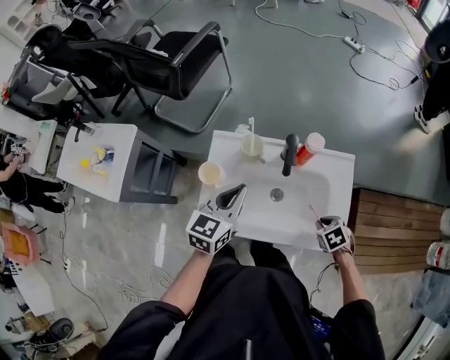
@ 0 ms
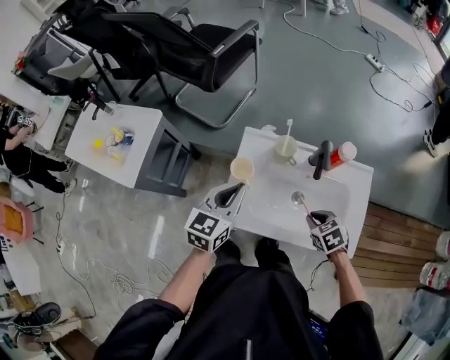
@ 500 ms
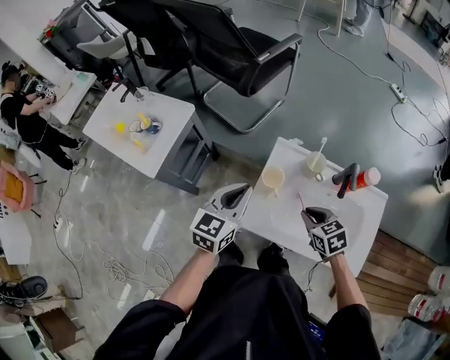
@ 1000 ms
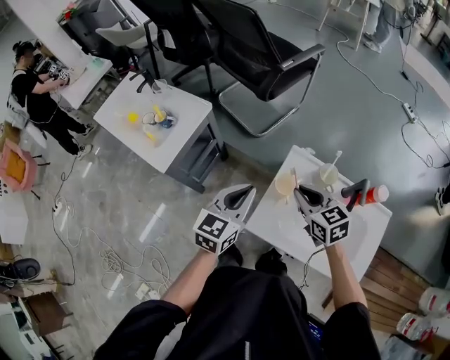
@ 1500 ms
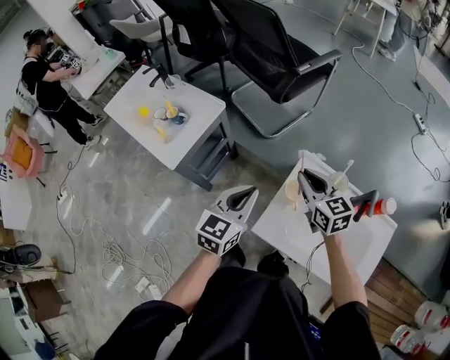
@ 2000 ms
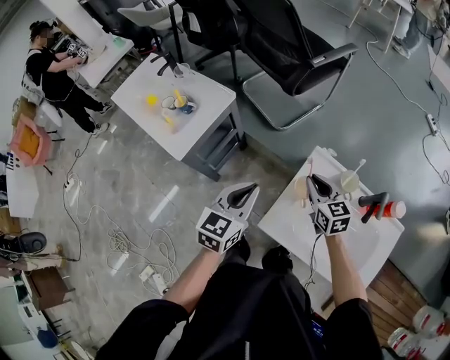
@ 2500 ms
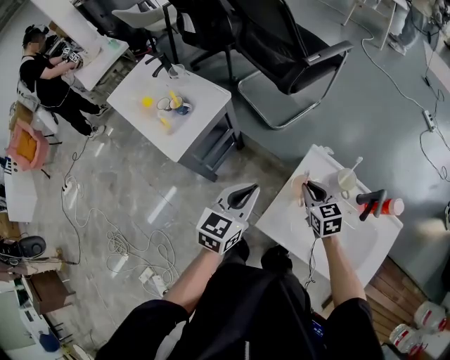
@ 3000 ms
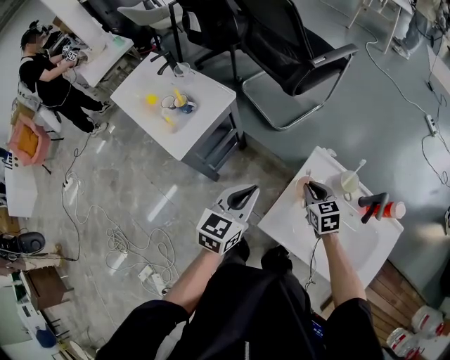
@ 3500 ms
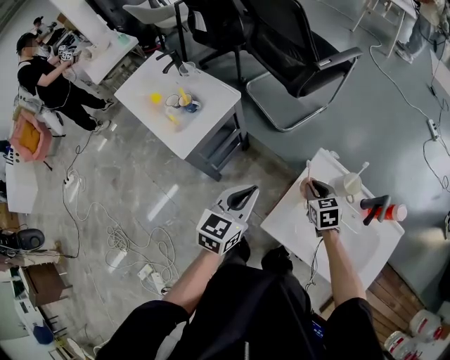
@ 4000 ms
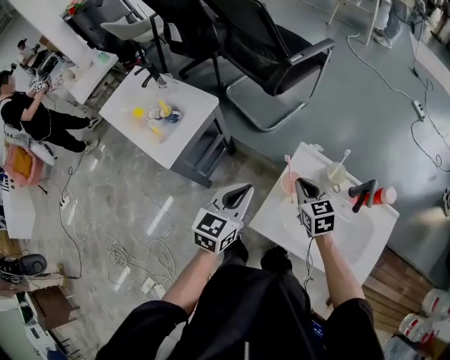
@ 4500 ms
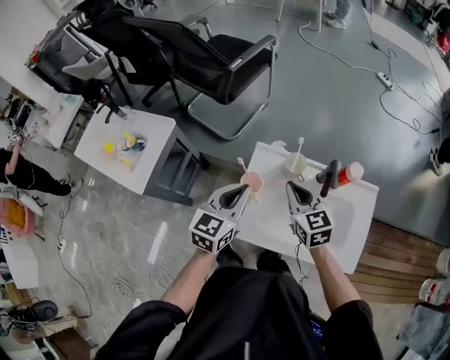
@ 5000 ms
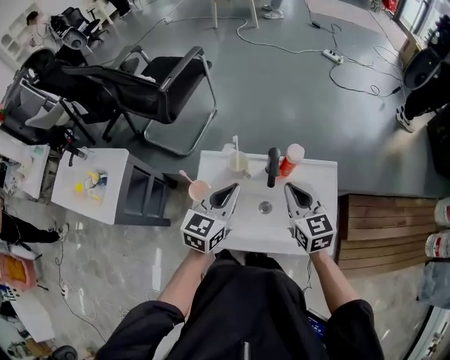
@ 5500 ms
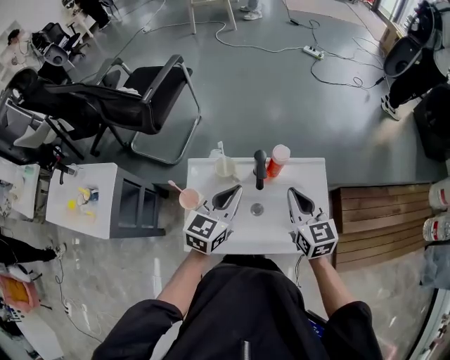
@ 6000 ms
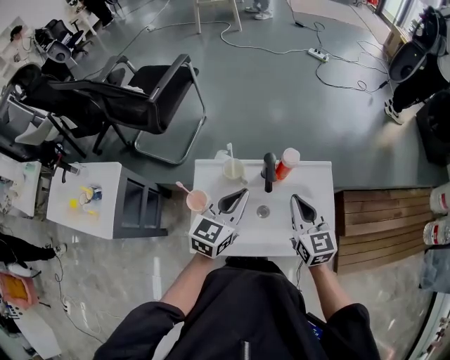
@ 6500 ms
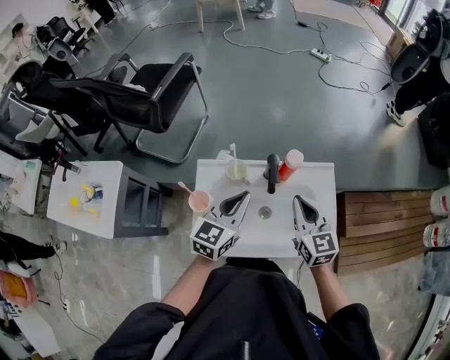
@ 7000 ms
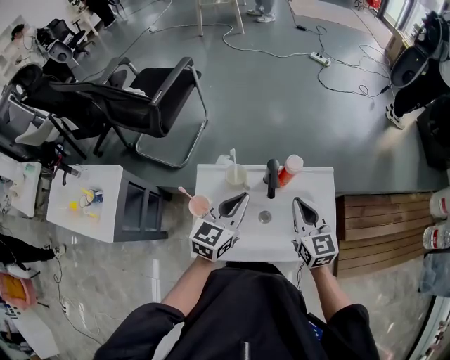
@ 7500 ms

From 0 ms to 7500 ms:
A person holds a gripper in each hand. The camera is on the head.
From 0 ms to 2000 ms: The left gripper heads to the left, covering about 25 cm, and turns by roughly 20 degrees. The right gripper shifts some 50 cm to the left, forward and upward, and angles its fingers upward, by approximately 50 degrees.
From 2000 ms to 4000 ms: The right gripper shifts approximately 15 cm downward, and rotates about 30 degrees.
From 4000 ms to 5500 ms: The left gripper changes place by roughly 35 cm, and swivels approximately 30 degrees. The right gripper shifts by approximately 35 cm, and rotates about 40 degrees.
From 5500 ms to 7500 ms: There are only small adjustments of the grippers.

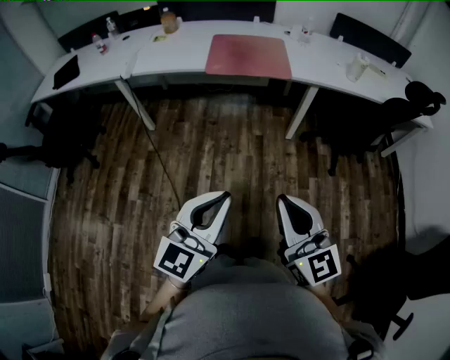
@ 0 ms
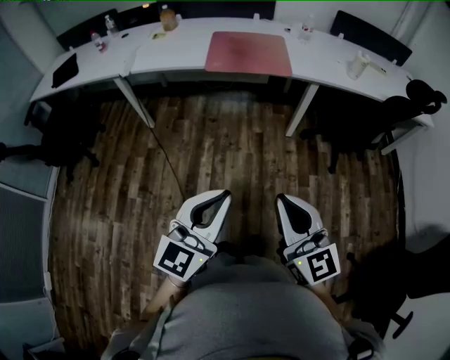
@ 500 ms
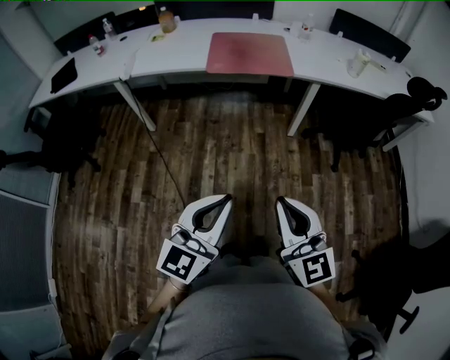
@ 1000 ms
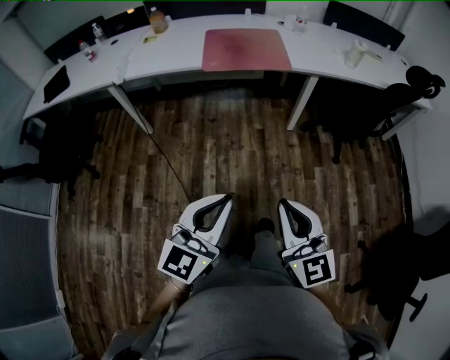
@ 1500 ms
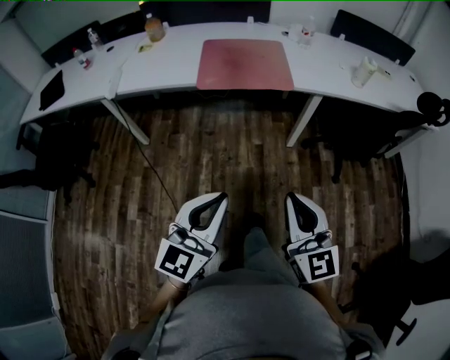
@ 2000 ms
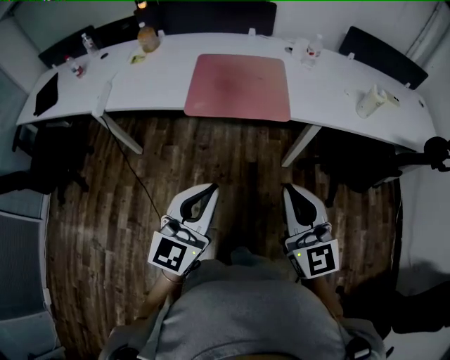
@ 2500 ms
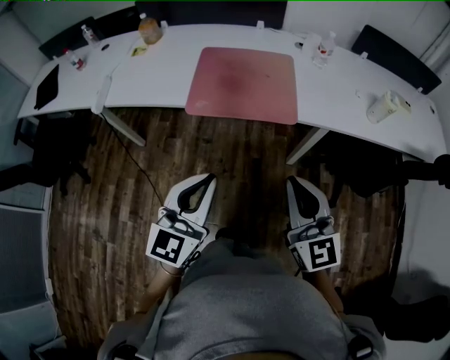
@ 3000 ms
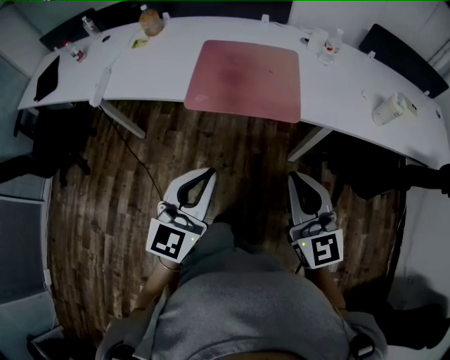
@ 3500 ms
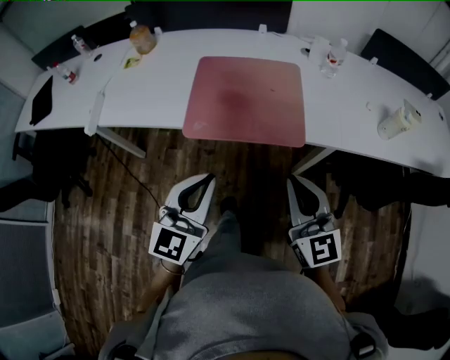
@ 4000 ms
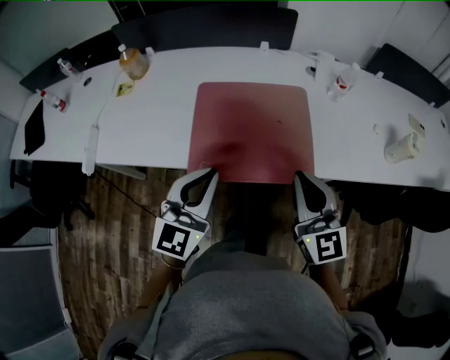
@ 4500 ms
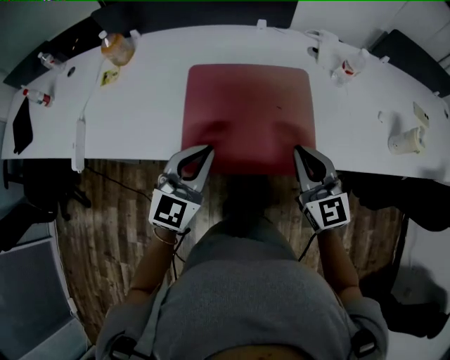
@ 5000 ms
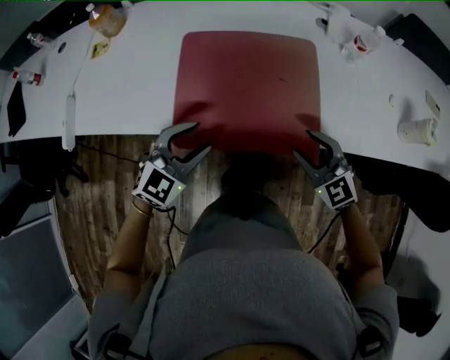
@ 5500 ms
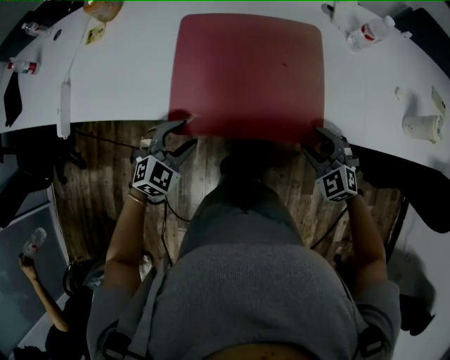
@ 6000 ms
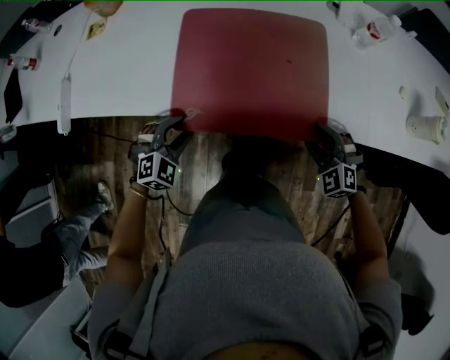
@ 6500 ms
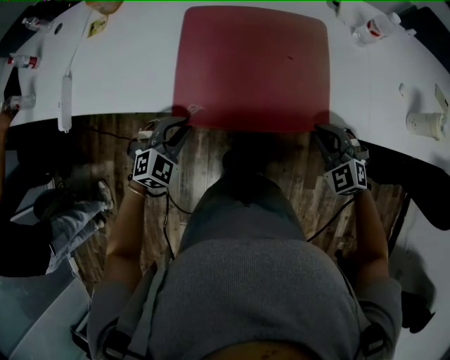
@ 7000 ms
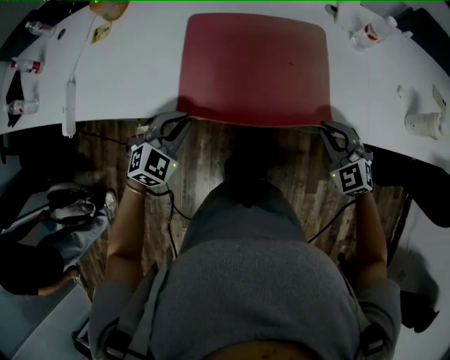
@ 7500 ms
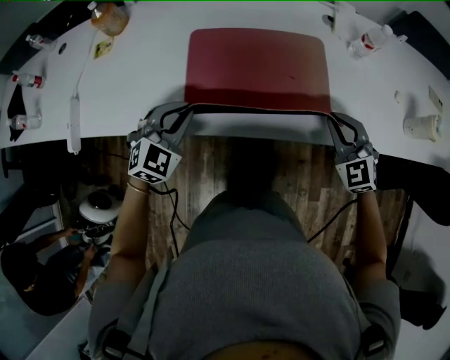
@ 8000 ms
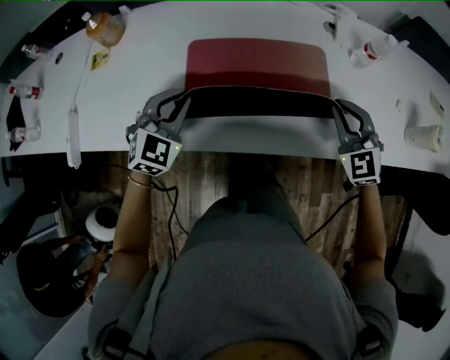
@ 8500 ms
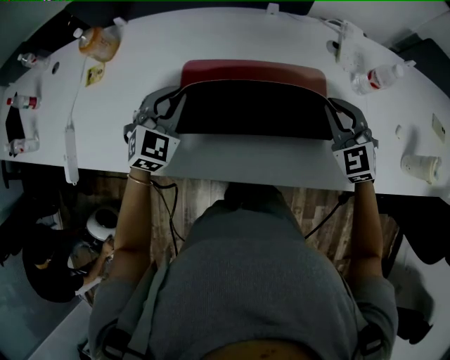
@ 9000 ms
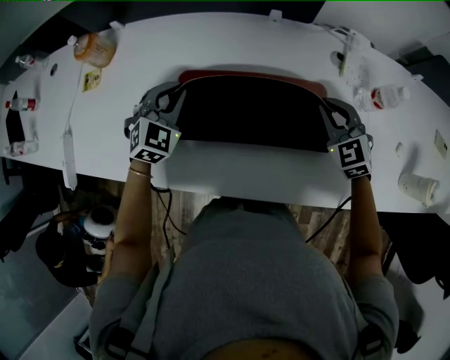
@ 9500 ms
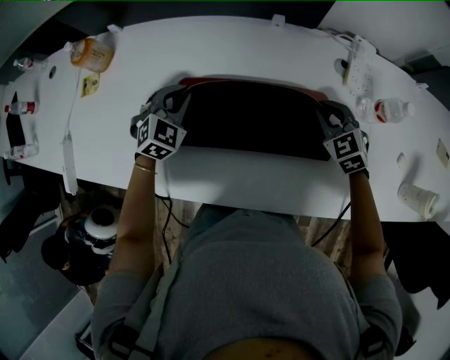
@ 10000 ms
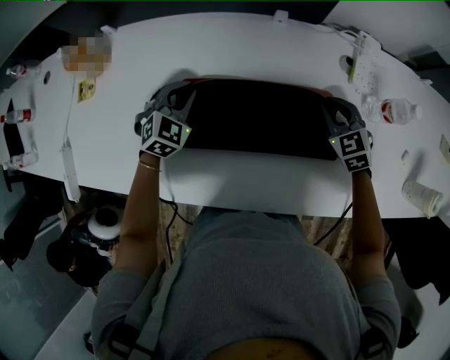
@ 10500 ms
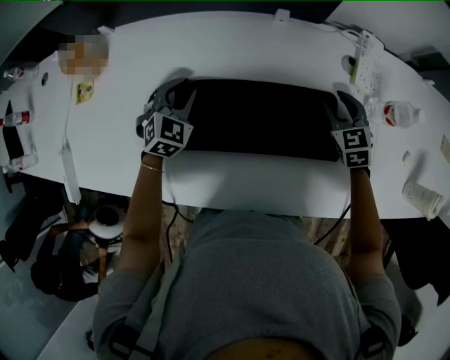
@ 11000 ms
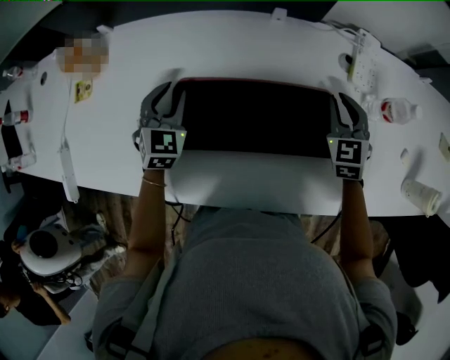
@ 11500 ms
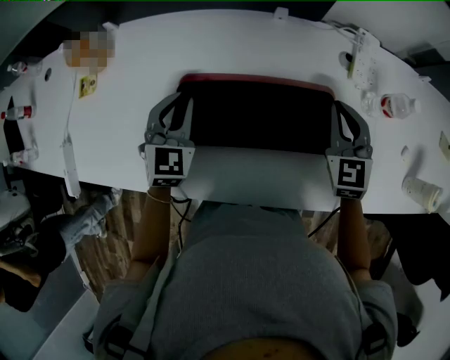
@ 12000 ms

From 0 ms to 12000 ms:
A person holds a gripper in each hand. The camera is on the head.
From 0 ms to 2000 ms: The grippers both shift forward by about 15 cm.
From 2000 ms to 4000 ms: Both grippers travel together forward, roughly 35 cm.
From 4000 ms to 6000 ms: The two grippers go roughly 30 cm downward and forward. The left gripper angles its fingers downward, by some 40 degrees, and opens its fingers. Meanwhile the right gripper tilts its fingers approximately 40 degrees downward, and opens its fingers.
From 6000 ms to 8000 ms: The right gripper heads upward and forward, covering some 15 cm, and closes. The left gripper goes approximately 15 cm forward and upward, and closes its fingers.
From 8000 ms to 10000 ms: Both grippers travel together forward, some 25 cm.
From 10000 ms to 12000 ms: The grippers both shift upward by some 10 cm. The right gripper swivels approximately 30 degrees, and opens, then closes again. Meanwhile the left gripper rotates about 20 degrees.

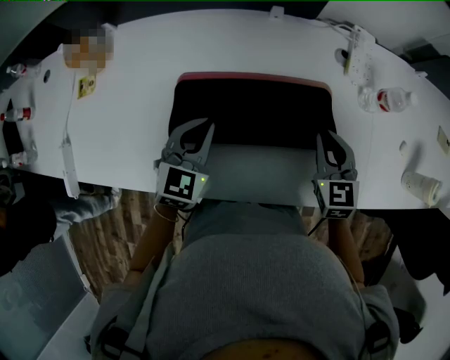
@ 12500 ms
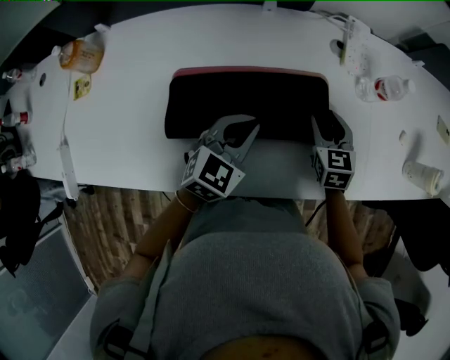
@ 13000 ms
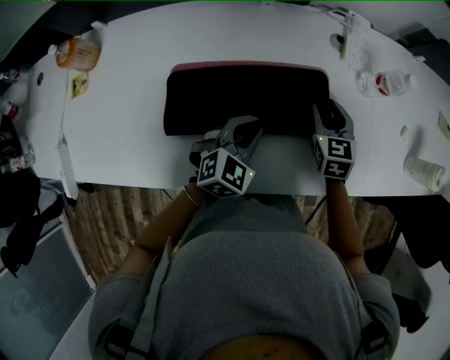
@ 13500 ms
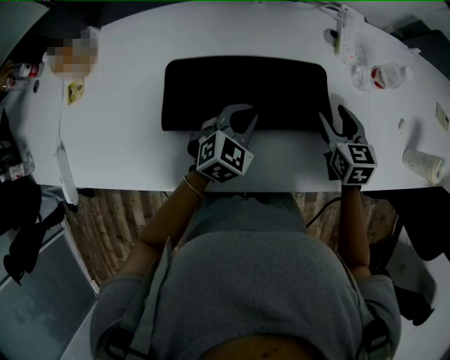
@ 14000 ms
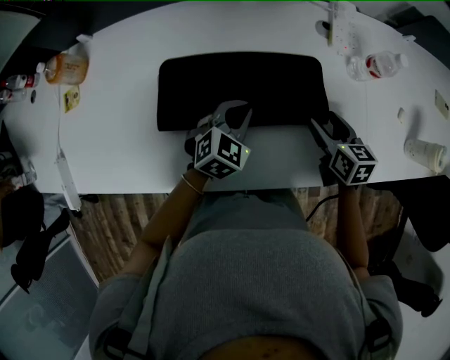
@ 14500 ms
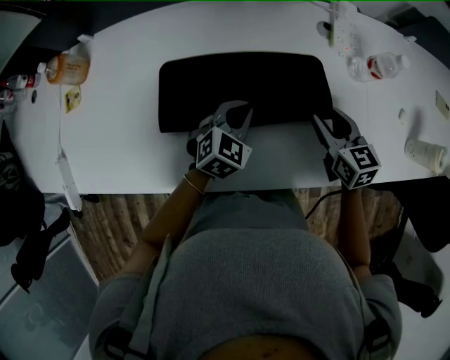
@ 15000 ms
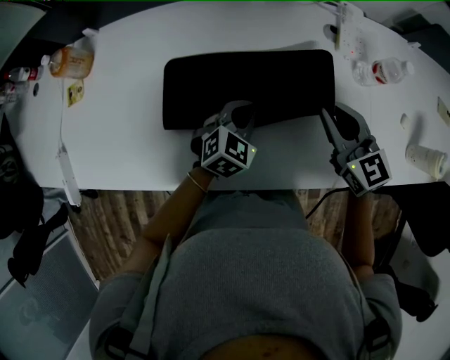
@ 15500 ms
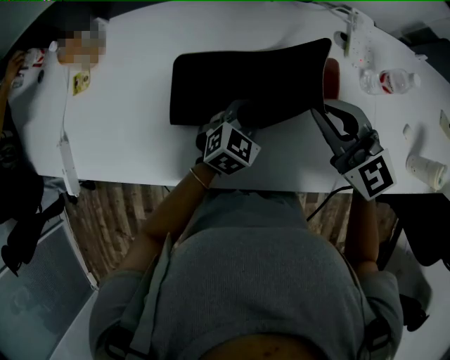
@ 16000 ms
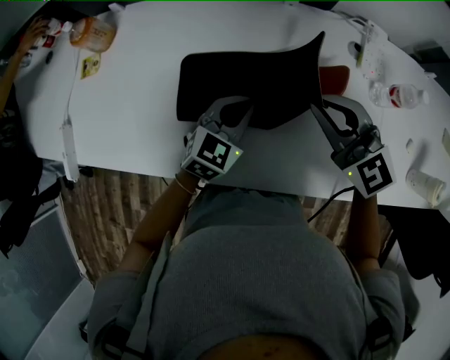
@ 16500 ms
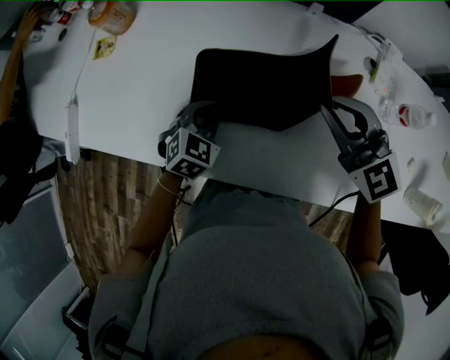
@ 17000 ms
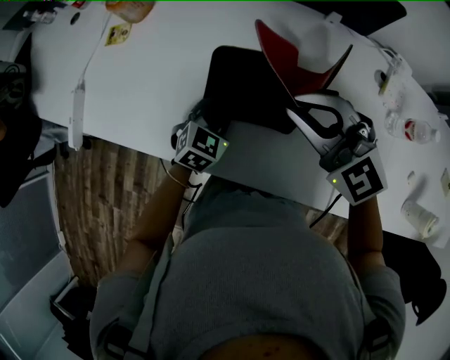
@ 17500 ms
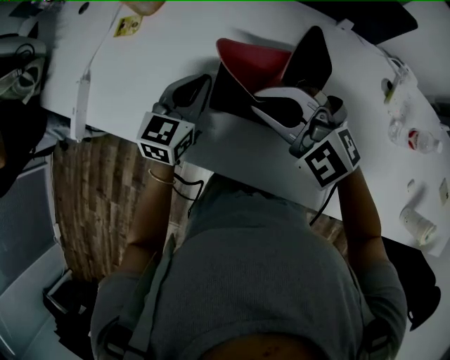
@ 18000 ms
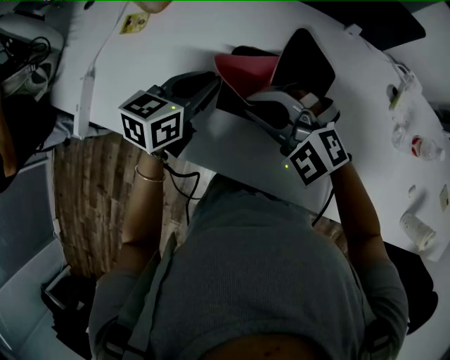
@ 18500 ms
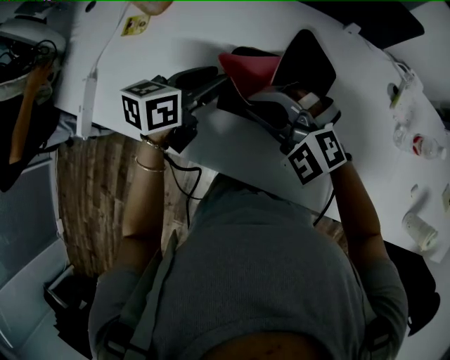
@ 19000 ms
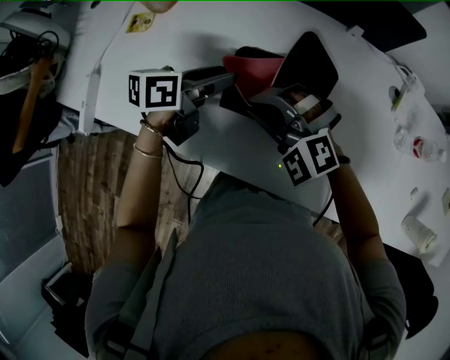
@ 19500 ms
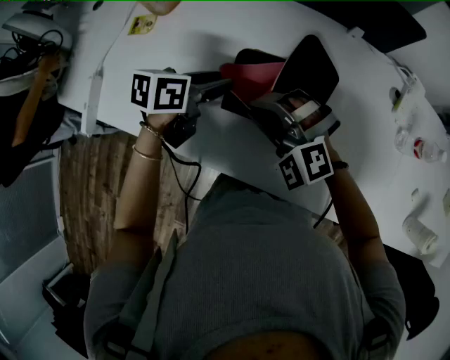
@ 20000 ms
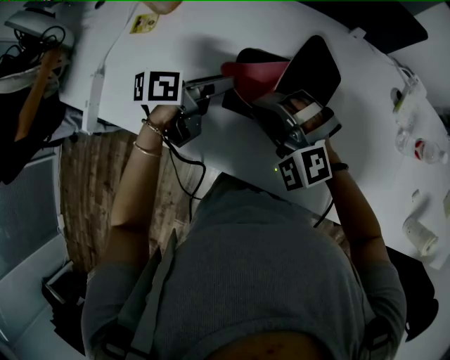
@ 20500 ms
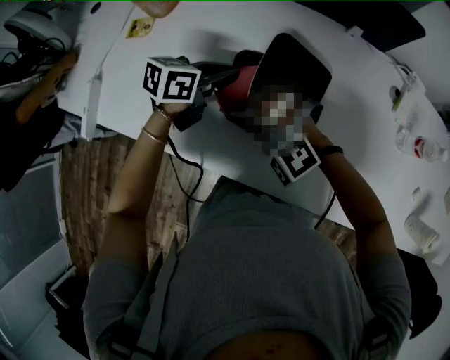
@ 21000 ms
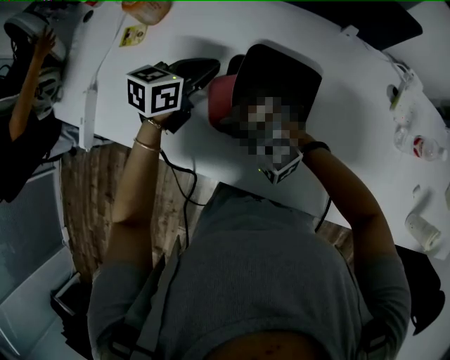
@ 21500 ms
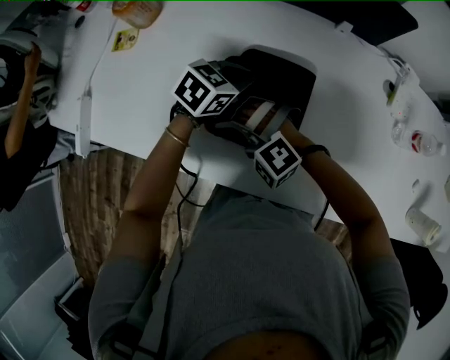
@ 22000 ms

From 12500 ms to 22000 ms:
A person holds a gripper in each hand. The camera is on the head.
From 12500 ms to 14500 ms: The right gripper moves downward and to the right, approximately 10 cm, turns by some 30 degrees, and opens its fingers; the left gripper travels to the right and downward by roughly 15 cm.
From 14500 ms to 16500 ms: The left gripper moves to the left, some 5 cm. Meanwhile the right gripper is displaced upward and to the left by some 25 cm, rotates about 60 degrees, and closes up.
From 16500 ms to 18000 ms: The left gripper ends up approximately 20 cm from where it was, and rotates roughly 30 degrees. Meanwhile the right gripper ends up approximately 20 cm from where it was, and swivels about 40 degrees.
From 18000 ms to 20000 ms: The left gripper changes its angle by approximately 40 degrees, and opens. Meanwhile the right gripper travels downward by some 5 cm.
From 20000 ms to 22000 ms: The left gripper ends up roughly 10 cm from where it was, rotates about 40 degrees, and closes its fingers. Meanwhile the right gripper shifts some 5 cm downward, and turns by roughly 20 degrees.
